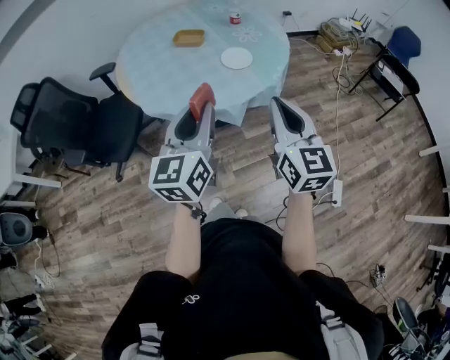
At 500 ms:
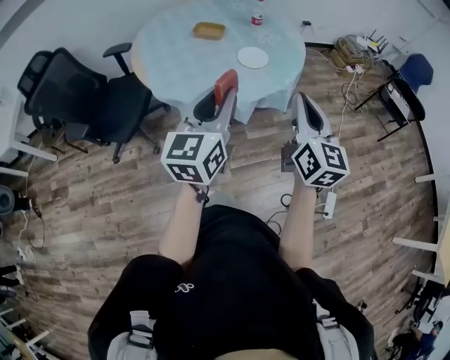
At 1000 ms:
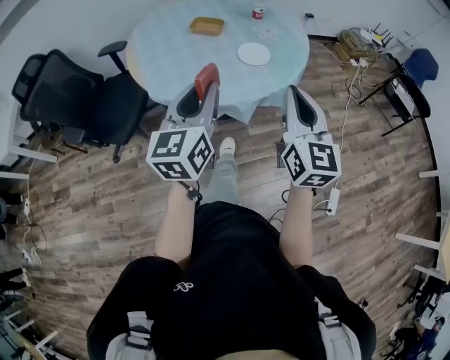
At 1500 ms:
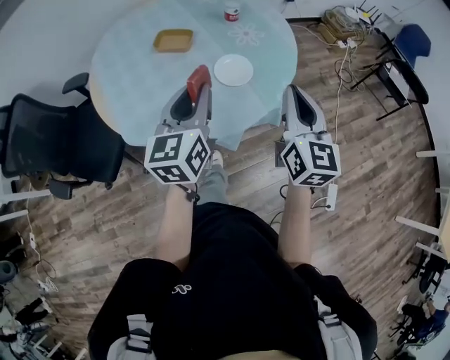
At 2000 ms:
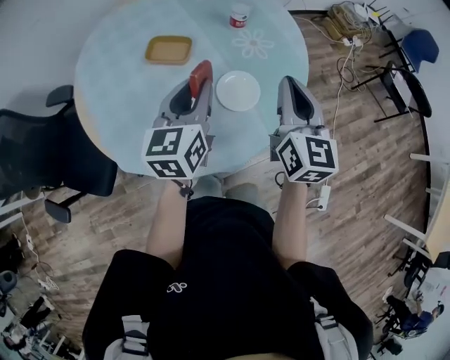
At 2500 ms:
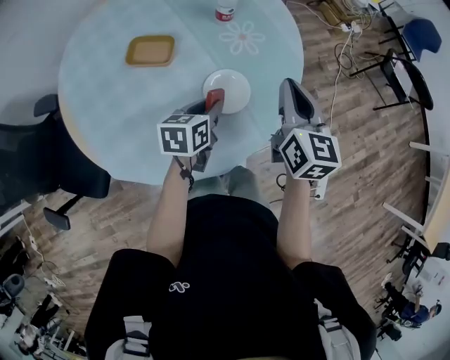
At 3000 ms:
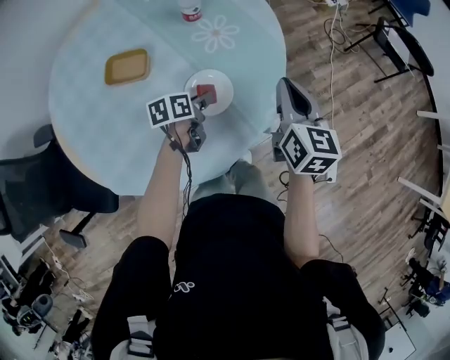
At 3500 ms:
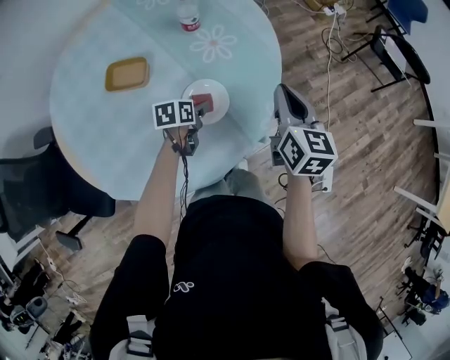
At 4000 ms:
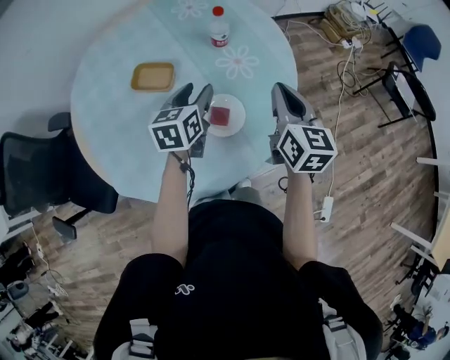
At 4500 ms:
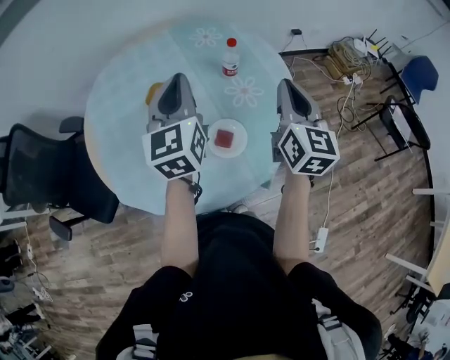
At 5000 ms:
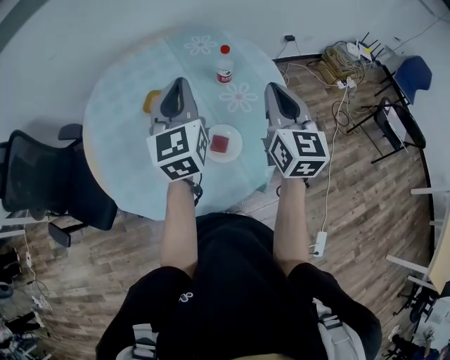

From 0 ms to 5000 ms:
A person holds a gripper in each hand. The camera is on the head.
From 0 ms to 2500 ms: The pair of grippers is taken forward, about 50 cm. The left gripper goes some 25 cm downward, and points its fingers some 40 degrees further downward. Meanwhile the right gripper turns by approximately 20 degrees.
From 2500 ms to 5000 ms: The left gripper goes some 25 cm upward, tilts its fingers about 40 degrees upward, and opens, then closes once more; the right gripper is displaced upward by about 10 cm.

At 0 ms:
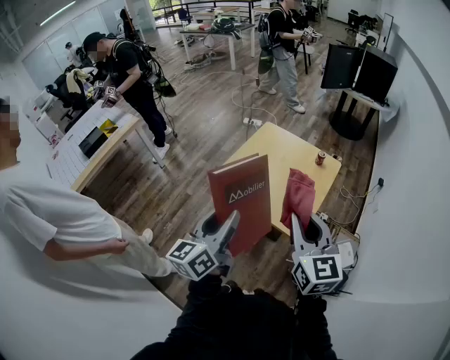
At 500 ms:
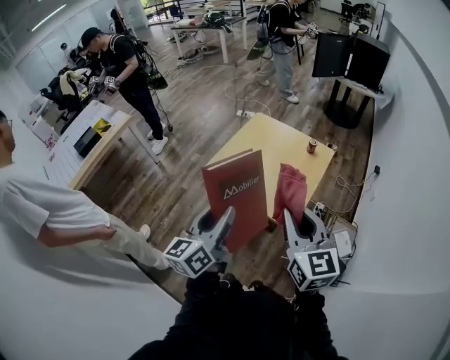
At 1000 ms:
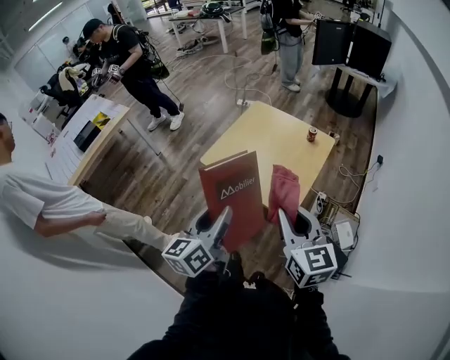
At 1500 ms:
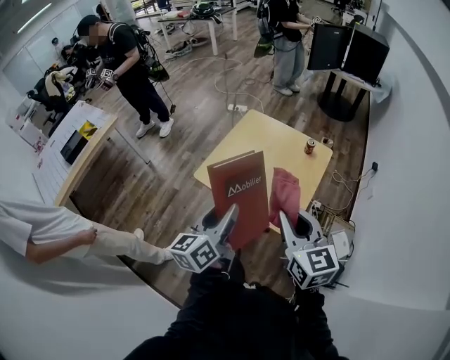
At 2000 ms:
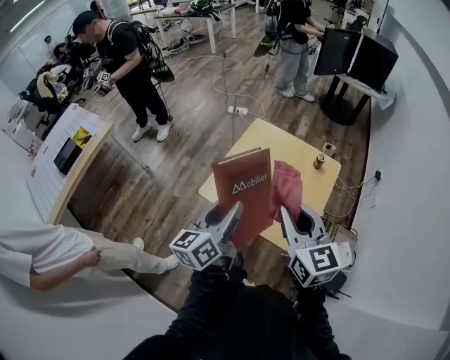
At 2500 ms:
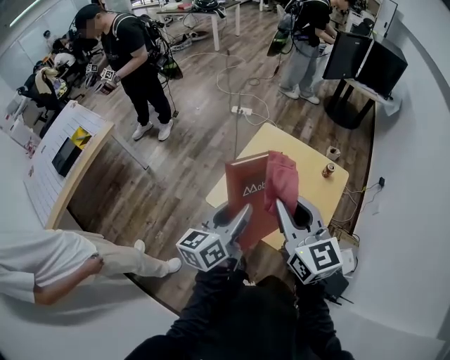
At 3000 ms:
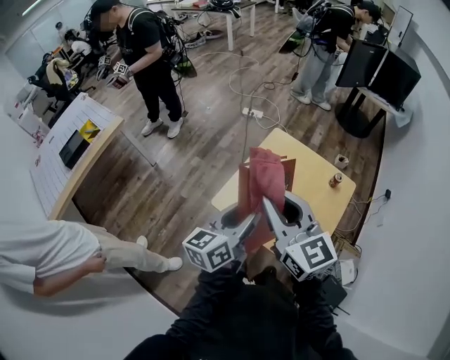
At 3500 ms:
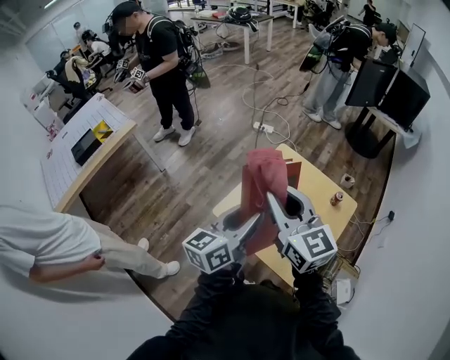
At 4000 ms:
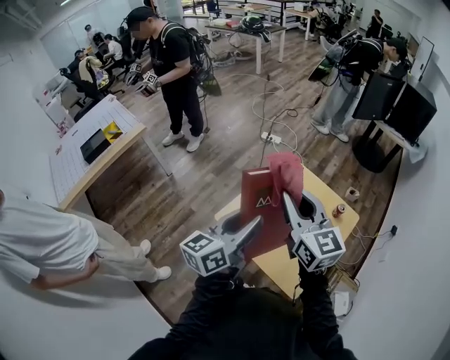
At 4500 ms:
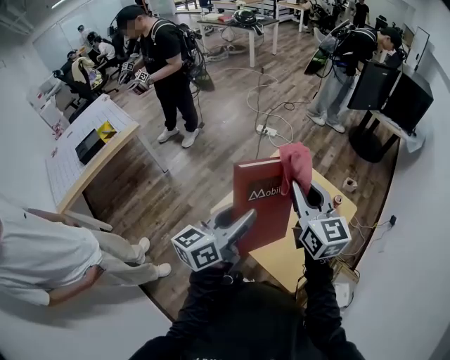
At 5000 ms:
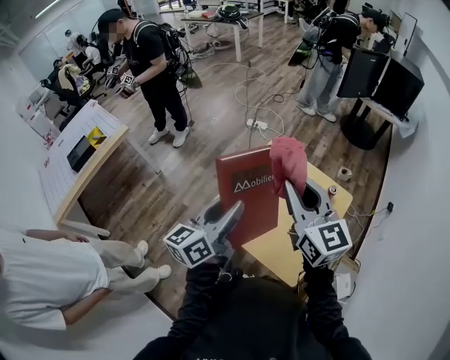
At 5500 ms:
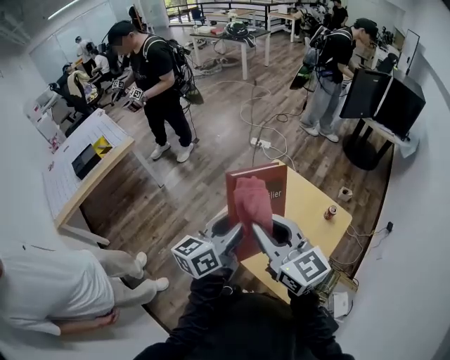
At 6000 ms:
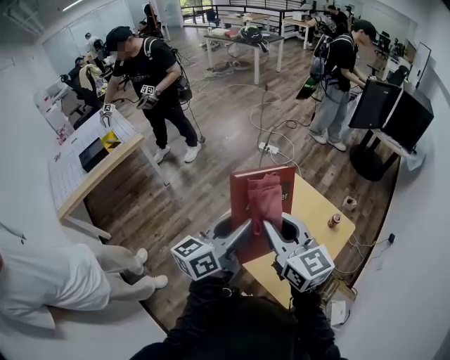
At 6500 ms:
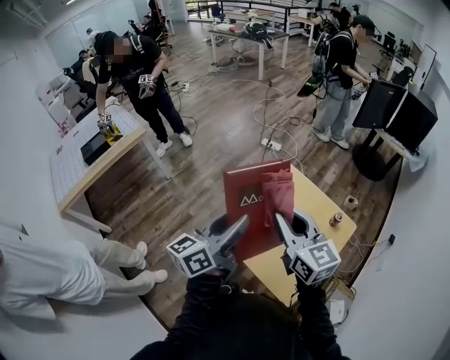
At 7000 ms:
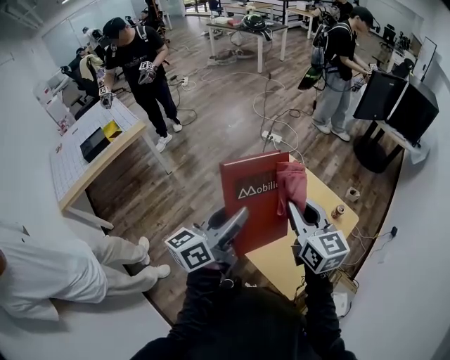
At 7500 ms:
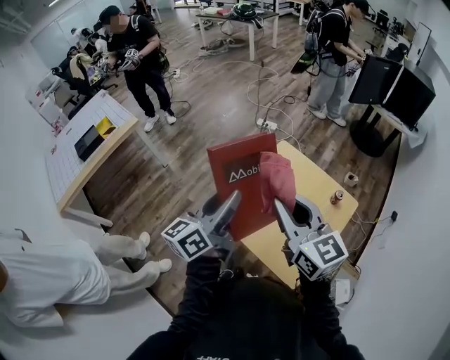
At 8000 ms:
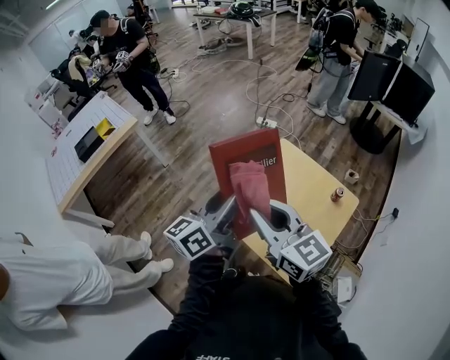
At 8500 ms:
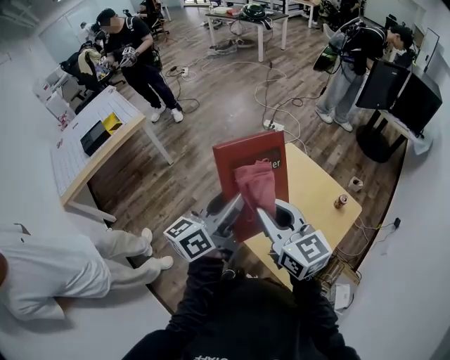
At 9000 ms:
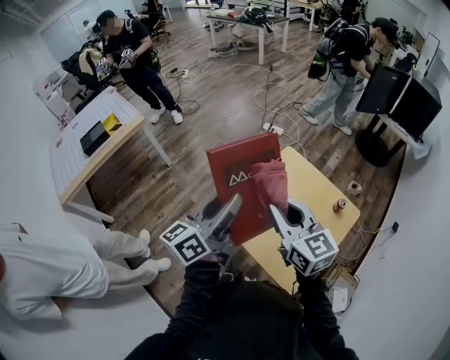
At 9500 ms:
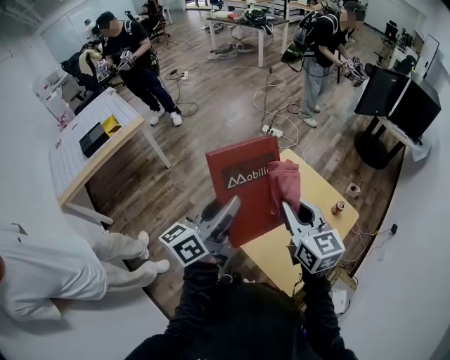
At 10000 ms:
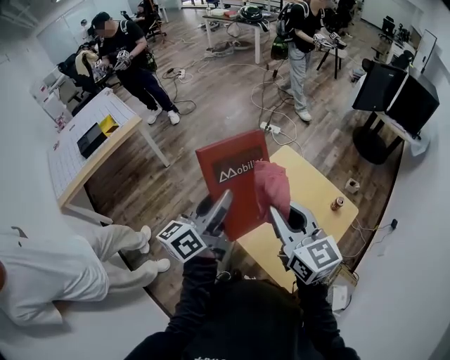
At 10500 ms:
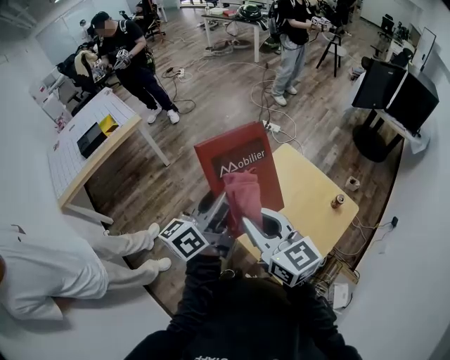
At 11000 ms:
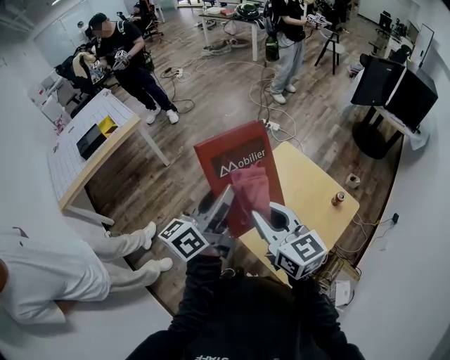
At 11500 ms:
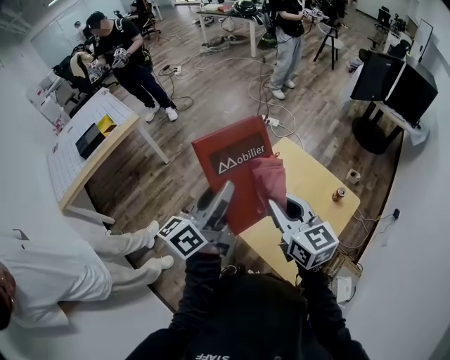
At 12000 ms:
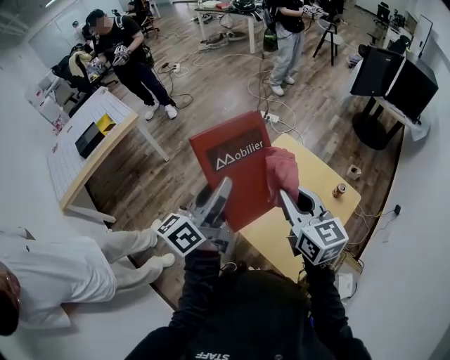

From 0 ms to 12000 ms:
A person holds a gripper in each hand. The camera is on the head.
From 0 ms to 2000 ms: Both grippers move forward, approximately 20 cm.
From 2000 ms to 4000 ms: The left gripper shifts about 5 cm forward. The right gripper travels forward and to the left by roughly 15 cm.
From 8000 ms to 10000 ms: The right gripper moves to the right, roughly 5 cm.
From 10000 ms to 12000 ms: The right gripper moves roughly 5 cm to the left and comes back.

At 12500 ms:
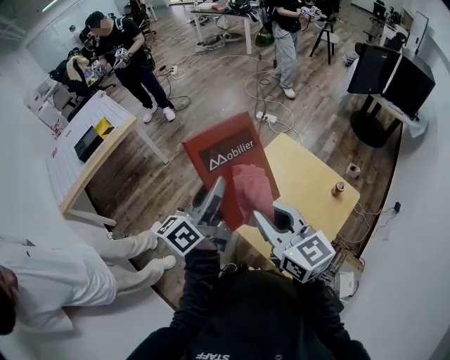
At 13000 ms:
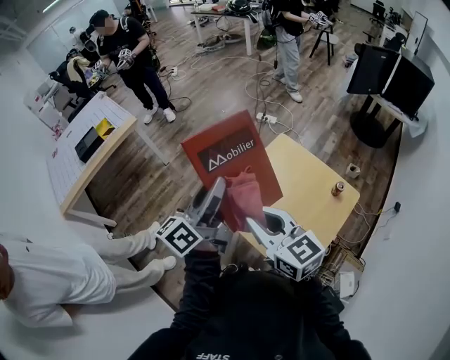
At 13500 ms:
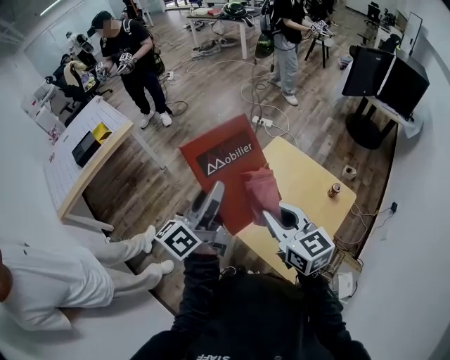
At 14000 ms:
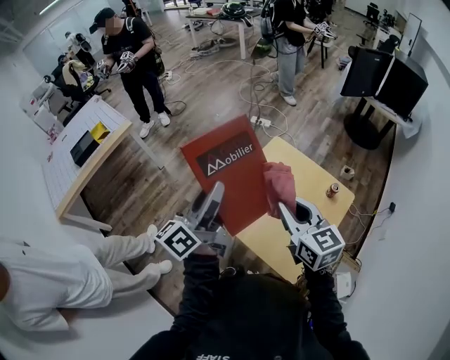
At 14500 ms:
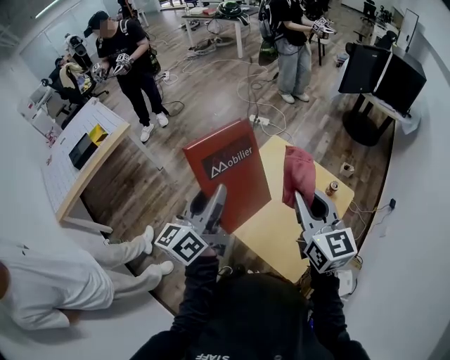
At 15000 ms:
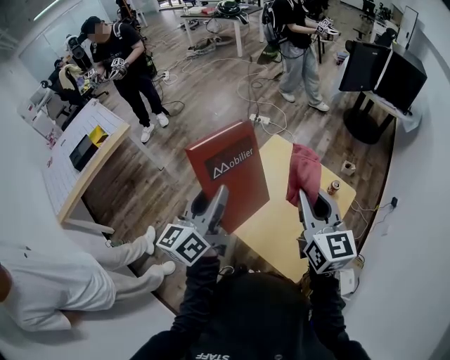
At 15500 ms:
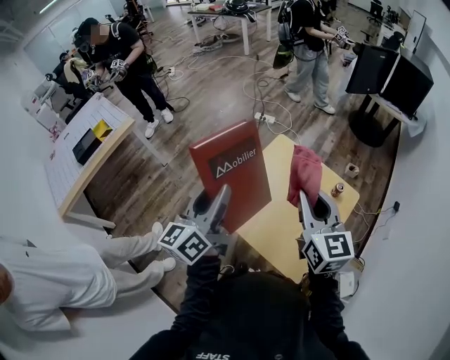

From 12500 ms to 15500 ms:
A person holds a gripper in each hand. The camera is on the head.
From 12500 ms to 14000 ms: The right gripper travels to the right by about 10 cm.
From 14000 ms to 15500 ms: The right gripper changes place by some 5 cm.

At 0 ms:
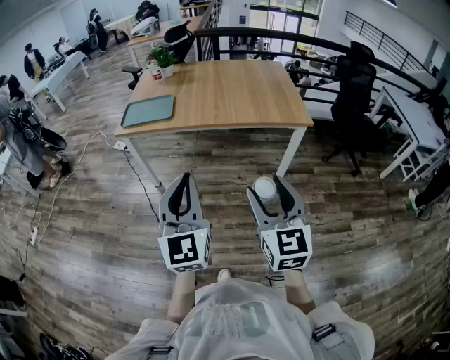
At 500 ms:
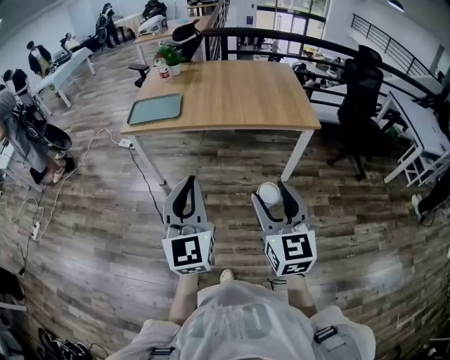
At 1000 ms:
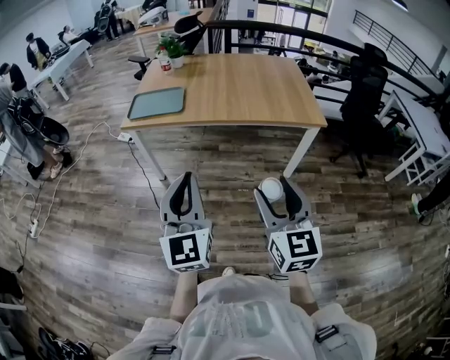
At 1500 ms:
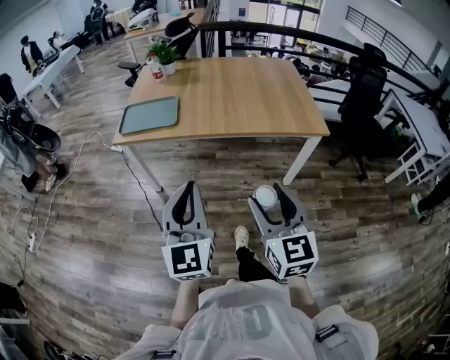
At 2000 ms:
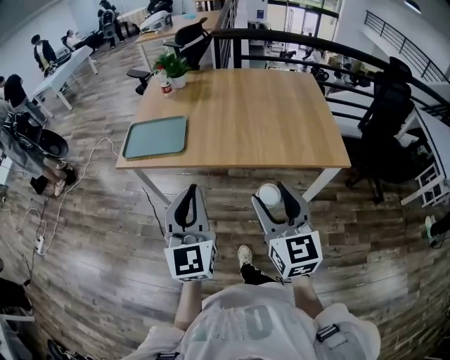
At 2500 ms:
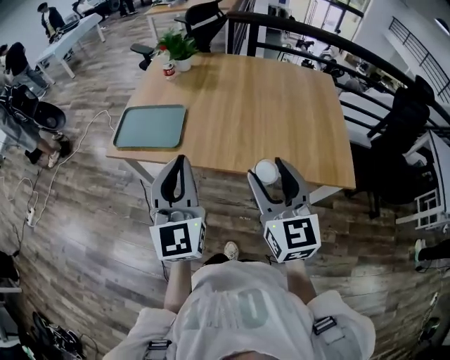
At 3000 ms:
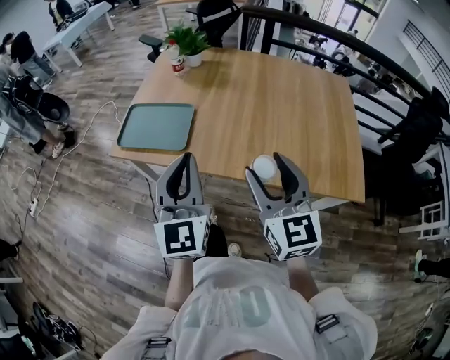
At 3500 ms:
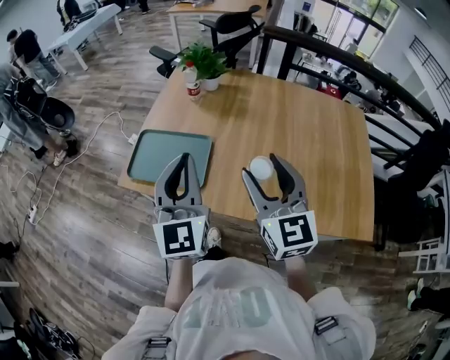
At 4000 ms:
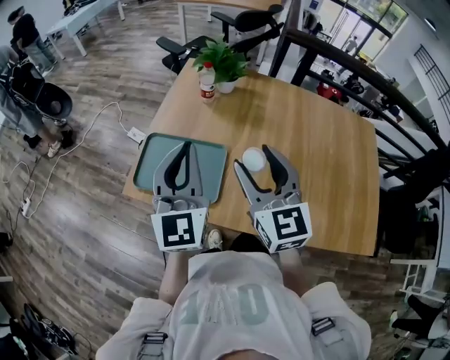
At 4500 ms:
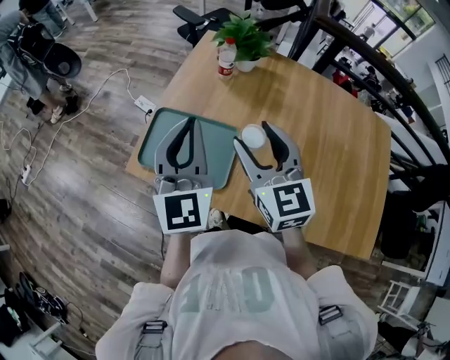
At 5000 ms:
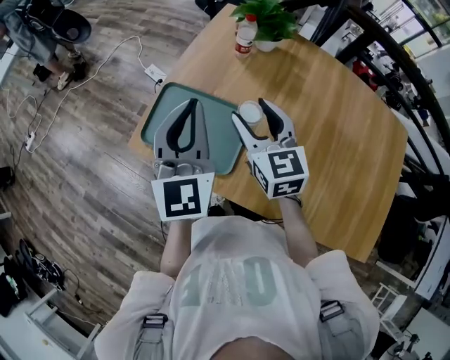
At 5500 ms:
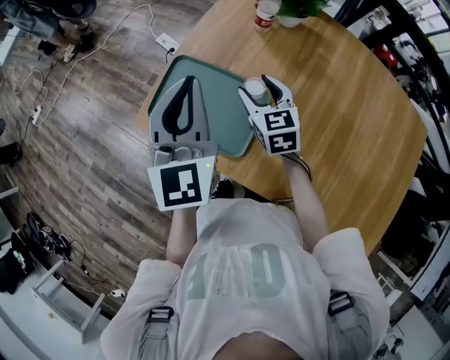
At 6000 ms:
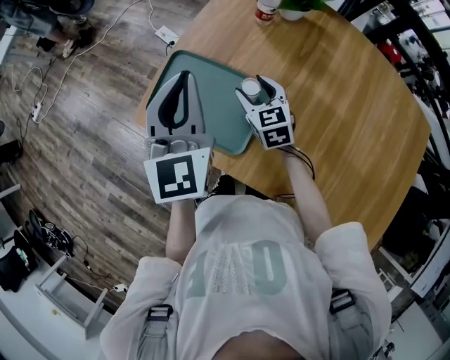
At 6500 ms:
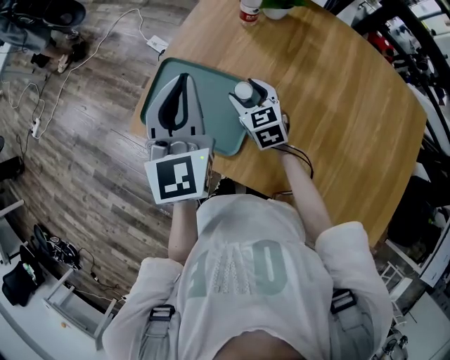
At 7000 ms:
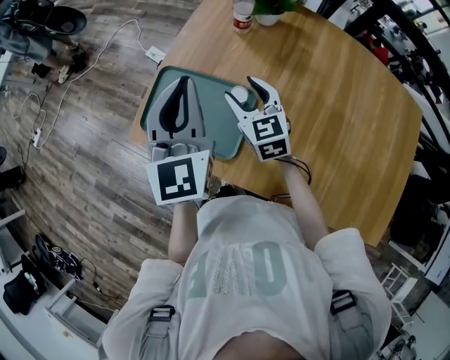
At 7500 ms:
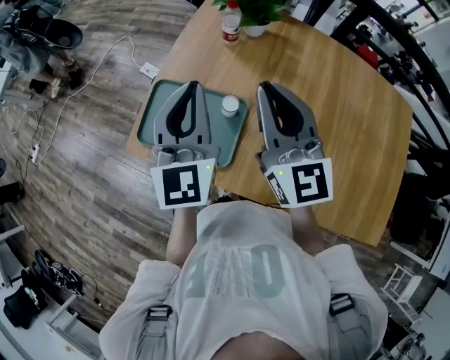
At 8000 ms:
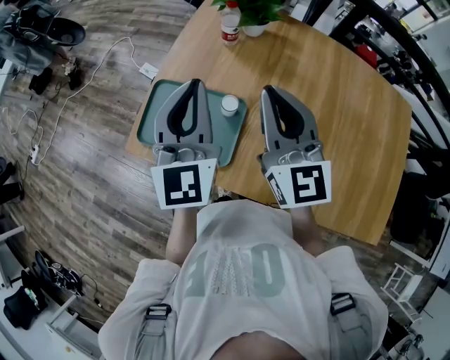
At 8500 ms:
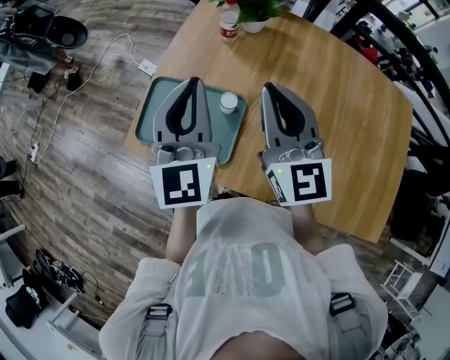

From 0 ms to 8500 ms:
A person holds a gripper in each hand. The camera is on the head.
From 0 ms to 2000 ms: Both grippers travel together forward, approximately 25 cm.
From 2000 ms to 4000 ms: The two grippers travel together, forward, about 40 cm.
From 4000 ms to 6500 ms: The left gripper goes approximately 10 cm forward and downward. The right gripper heads downward and forward, covering some 30 cm, and turns by roughly 30 degrees.
From 6500 ms to 8500 ms: The right gripper moves upward, approximately 25 cm, tilts its fingers roughly 40 degrees upward, and closes up; the left gripper moves to the right, about 5 cm.
